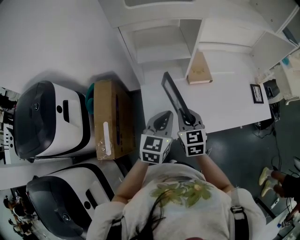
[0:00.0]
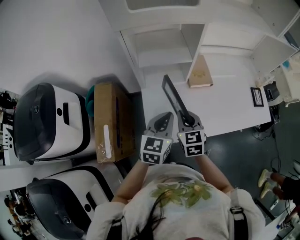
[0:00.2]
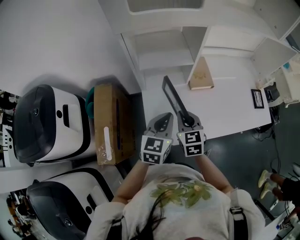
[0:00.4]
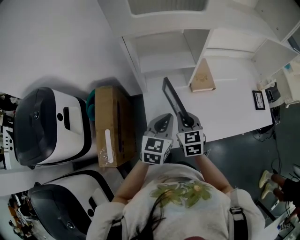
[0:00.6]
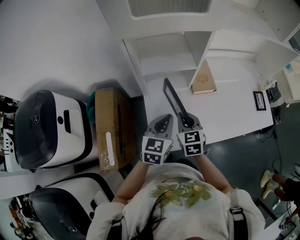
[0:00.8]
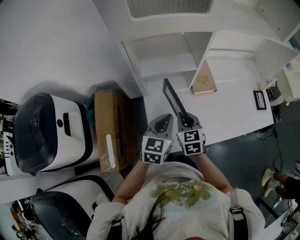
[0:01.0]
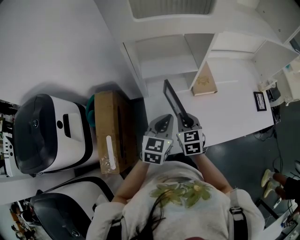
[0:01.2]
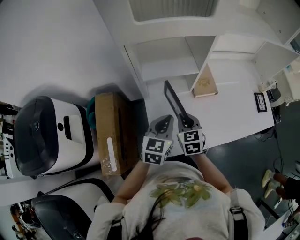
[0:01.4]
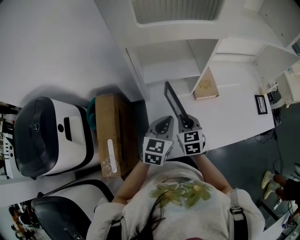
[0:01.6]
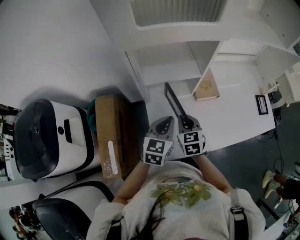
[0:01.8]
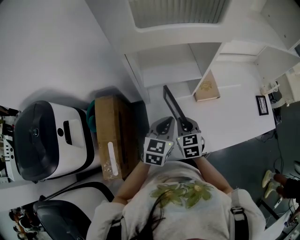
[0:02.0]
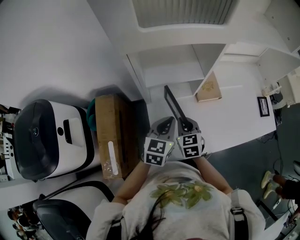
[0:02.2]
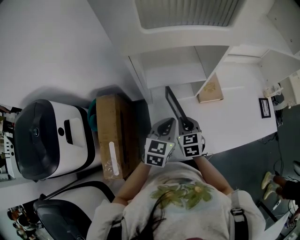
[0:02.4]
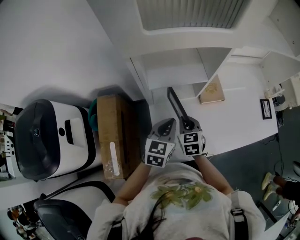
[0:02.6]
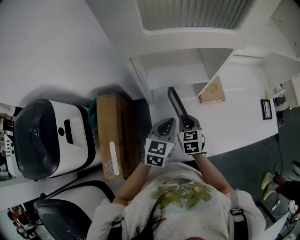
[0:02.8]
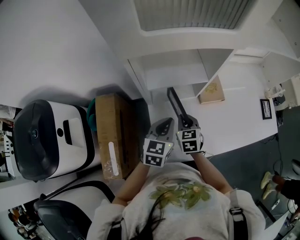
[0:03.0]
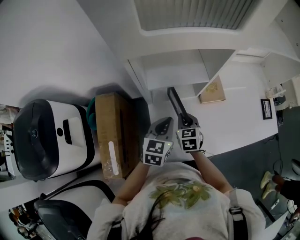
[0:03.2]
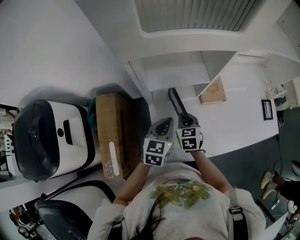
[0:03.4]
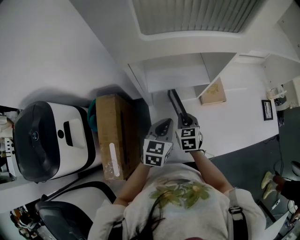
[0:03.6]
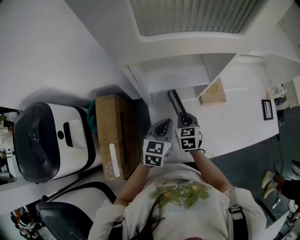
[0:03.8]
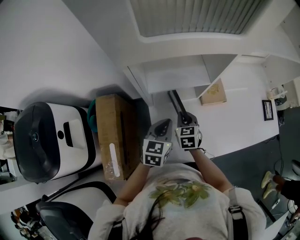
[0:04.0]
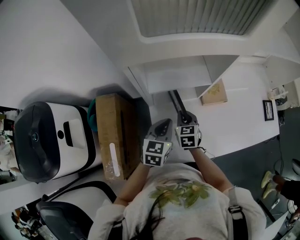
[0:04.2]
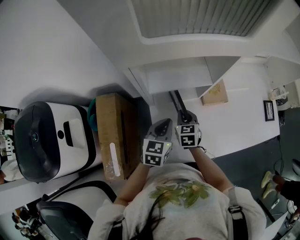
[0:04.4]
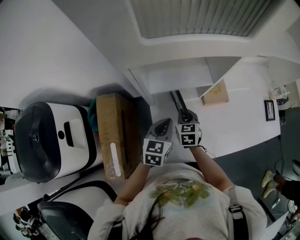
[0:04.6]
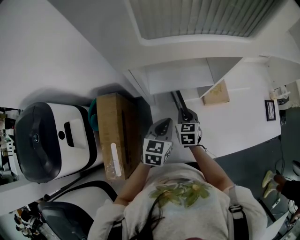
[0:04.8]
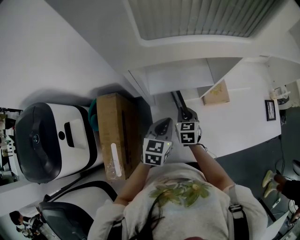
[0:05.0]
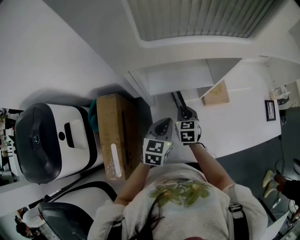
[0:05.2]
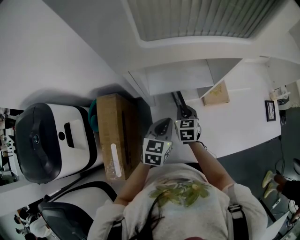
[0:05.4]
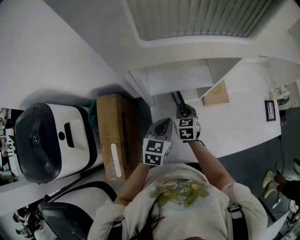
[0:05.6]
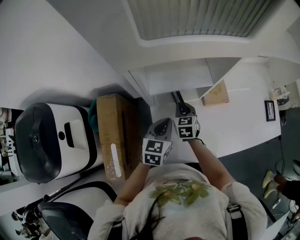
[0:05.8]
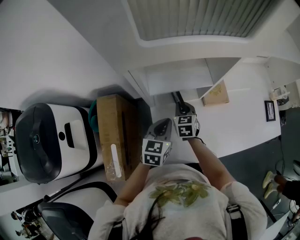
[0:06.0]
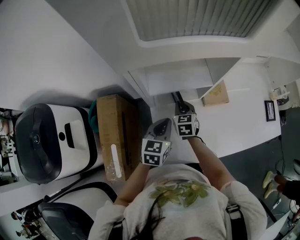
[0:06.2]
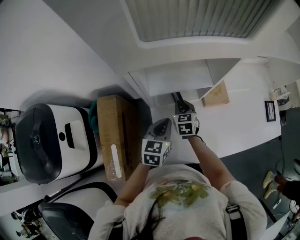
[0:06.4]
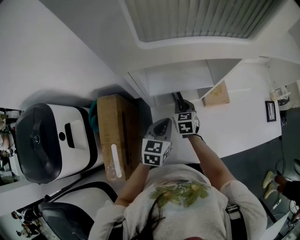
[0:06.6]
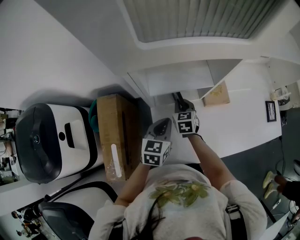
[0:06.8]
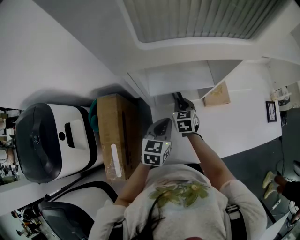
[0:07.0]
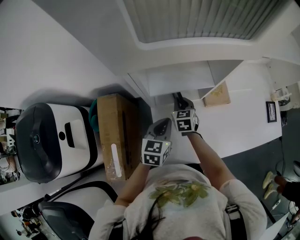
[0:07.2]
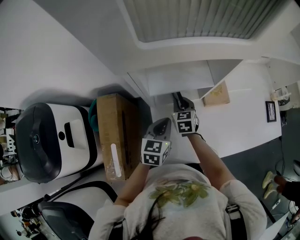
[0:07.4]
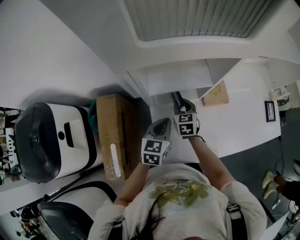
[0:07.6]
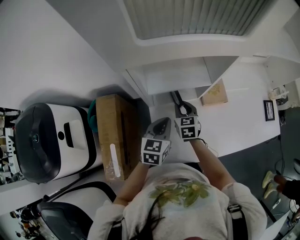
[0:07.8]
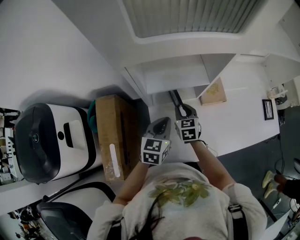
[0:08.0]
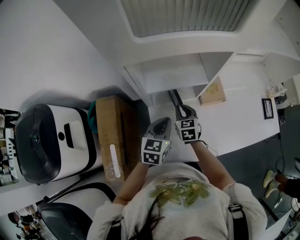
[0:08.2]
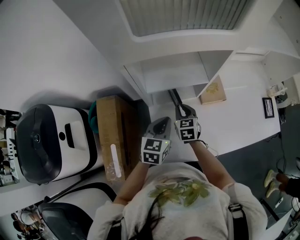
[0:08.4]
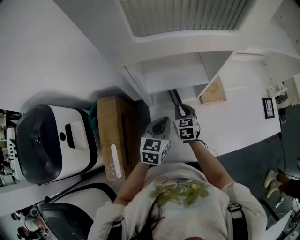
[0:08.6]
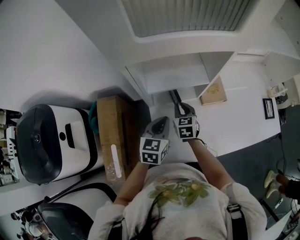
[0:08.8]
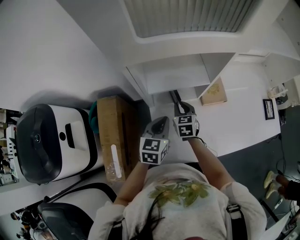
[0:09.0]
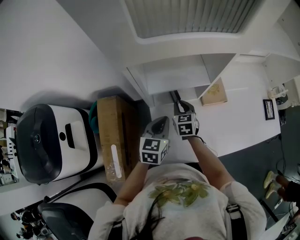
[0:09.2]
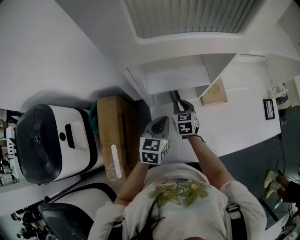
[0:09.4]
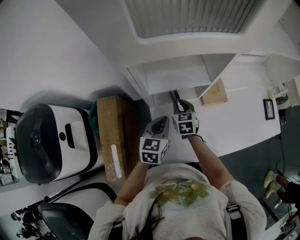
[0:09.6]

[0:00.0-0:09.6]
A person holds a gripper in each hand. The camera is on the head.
0:00.0 to 0:01.6: The left gripper is displaced forward by about 10 cm; the right gripper shifts approximately 10 cm forward and downward.
0:01.6 to 0:03.2: The right gripper heads downward and forward, covering approximately 10 cm. The left gripper shifts by roughly 5 cm.
0:03.2 to 0:04.8: The grippers make only small movements.
0:04.8 to 0:06.4: The grippers make only small movements.
0:06.4 to 0:09.6: The grippers stay close to where they were, moving slightly.

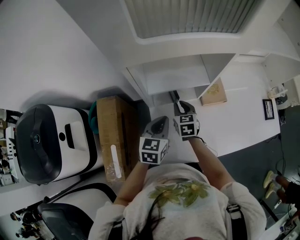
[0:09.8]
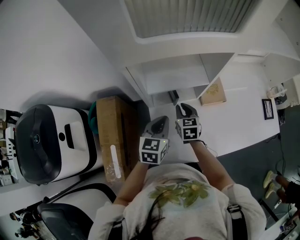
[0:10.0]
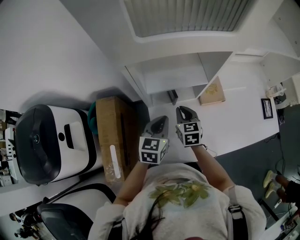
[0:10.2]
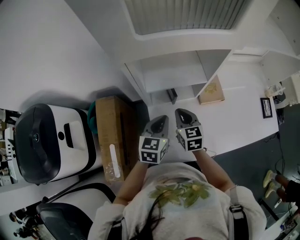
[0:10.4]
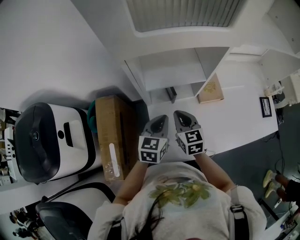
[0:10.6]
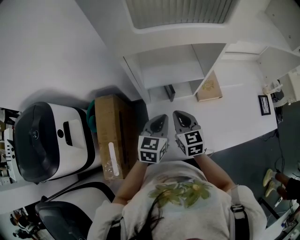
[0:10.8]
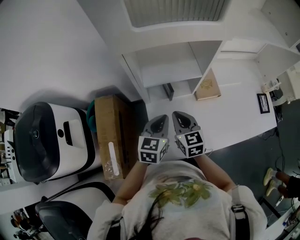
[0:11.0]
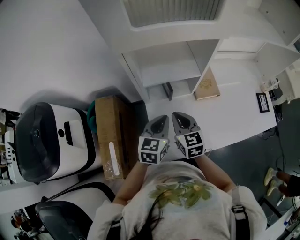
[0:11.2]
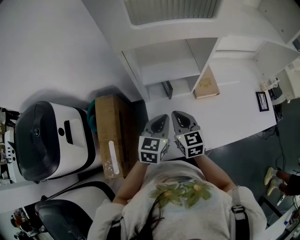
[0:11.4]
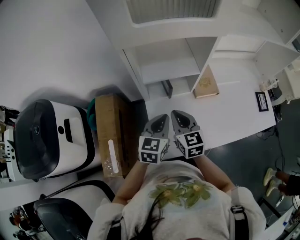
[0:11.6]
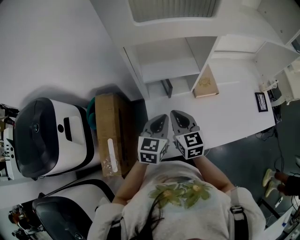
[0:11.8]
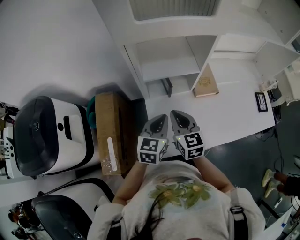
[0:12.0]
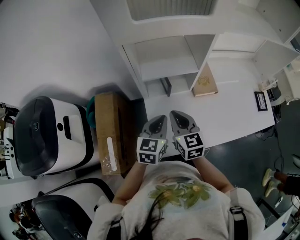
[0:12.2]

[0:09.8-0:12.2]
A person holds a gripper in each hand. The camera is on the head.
0:09.8 to 0:11.0: The right gripper heads upward and backward, covering about 15 cm.
0:11.0 to 0:12.2: The right gripper shifts by some 5 cm.

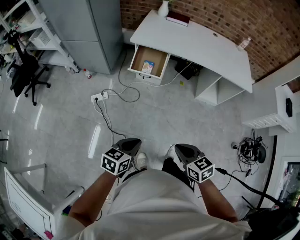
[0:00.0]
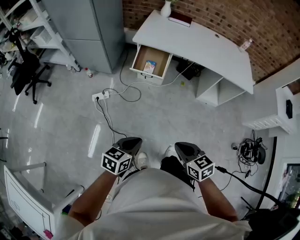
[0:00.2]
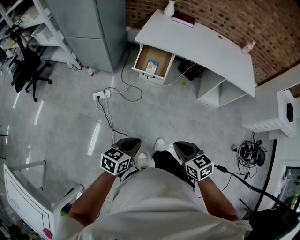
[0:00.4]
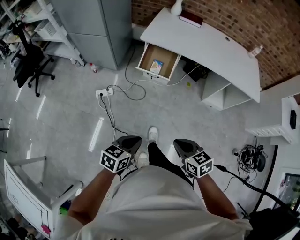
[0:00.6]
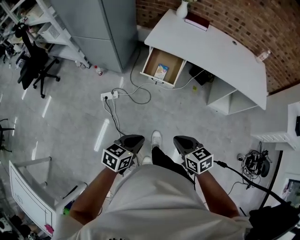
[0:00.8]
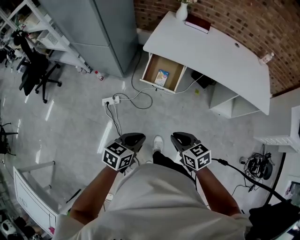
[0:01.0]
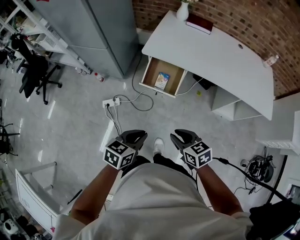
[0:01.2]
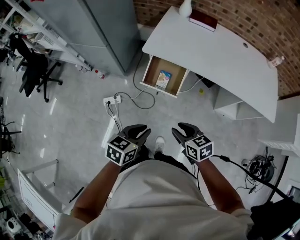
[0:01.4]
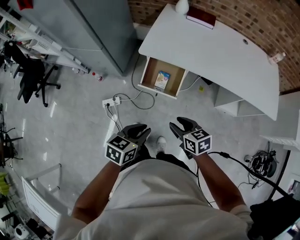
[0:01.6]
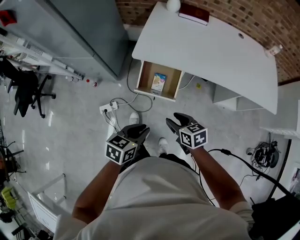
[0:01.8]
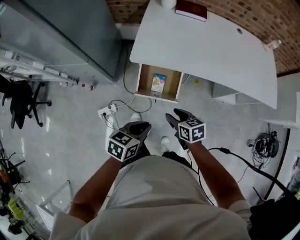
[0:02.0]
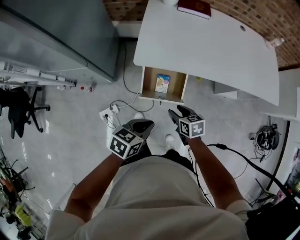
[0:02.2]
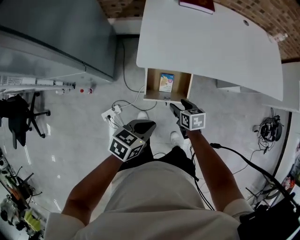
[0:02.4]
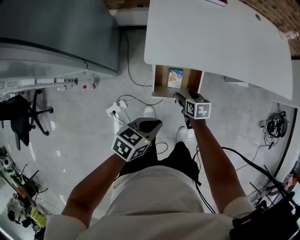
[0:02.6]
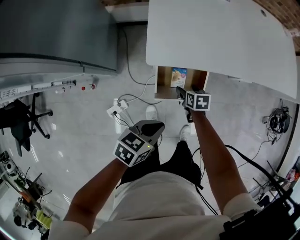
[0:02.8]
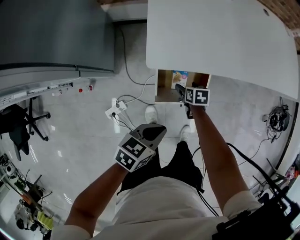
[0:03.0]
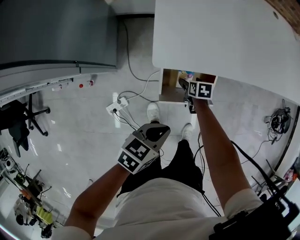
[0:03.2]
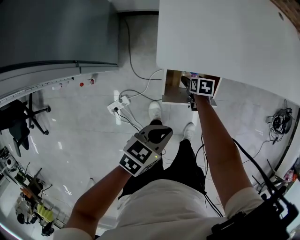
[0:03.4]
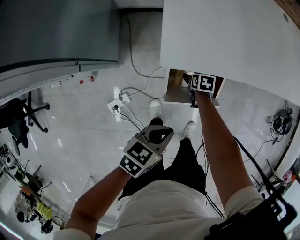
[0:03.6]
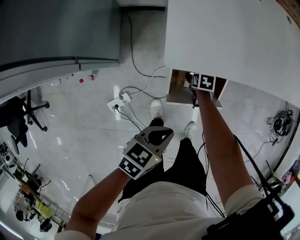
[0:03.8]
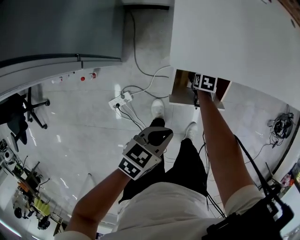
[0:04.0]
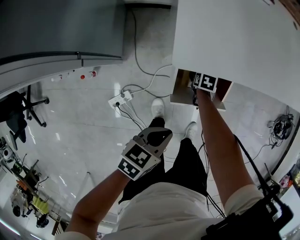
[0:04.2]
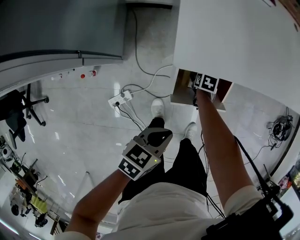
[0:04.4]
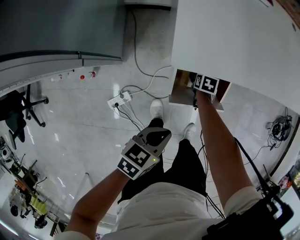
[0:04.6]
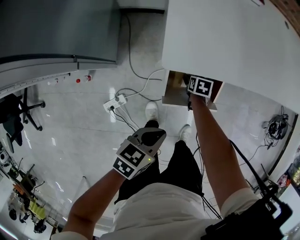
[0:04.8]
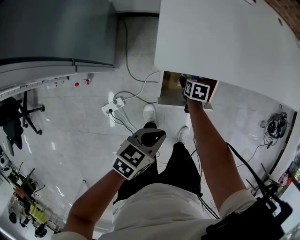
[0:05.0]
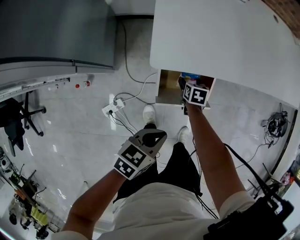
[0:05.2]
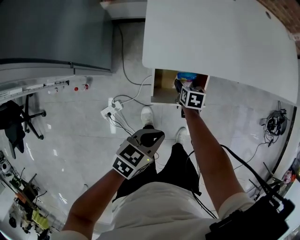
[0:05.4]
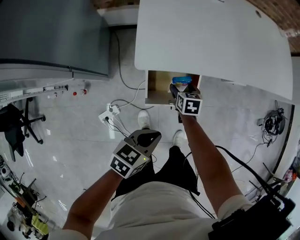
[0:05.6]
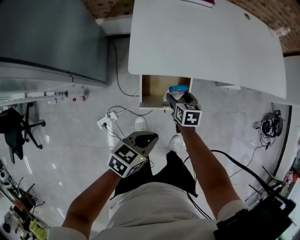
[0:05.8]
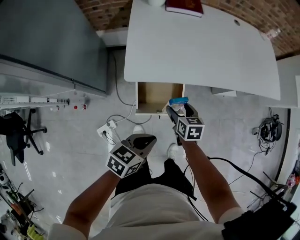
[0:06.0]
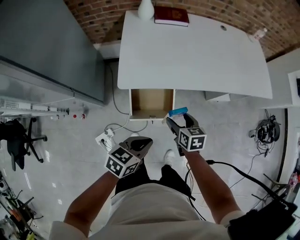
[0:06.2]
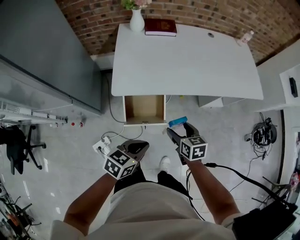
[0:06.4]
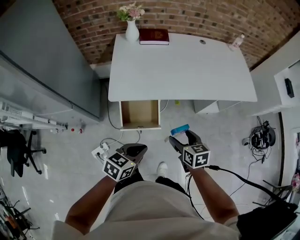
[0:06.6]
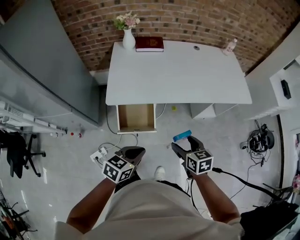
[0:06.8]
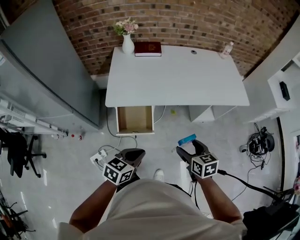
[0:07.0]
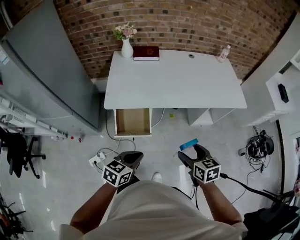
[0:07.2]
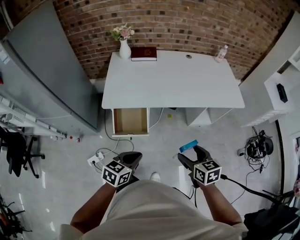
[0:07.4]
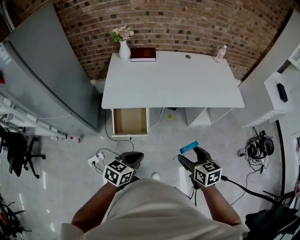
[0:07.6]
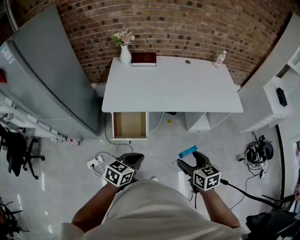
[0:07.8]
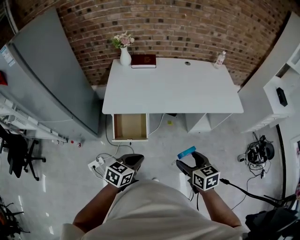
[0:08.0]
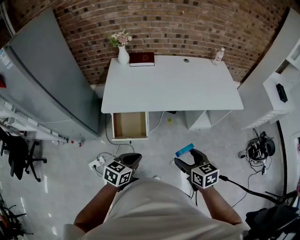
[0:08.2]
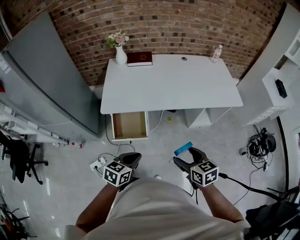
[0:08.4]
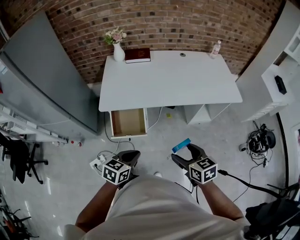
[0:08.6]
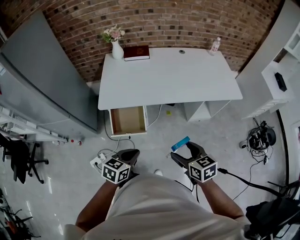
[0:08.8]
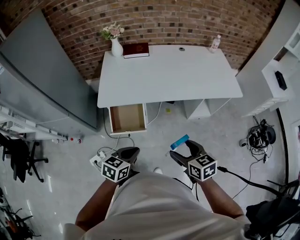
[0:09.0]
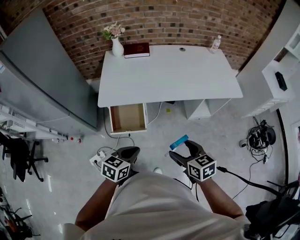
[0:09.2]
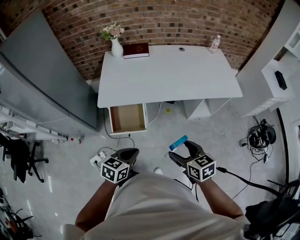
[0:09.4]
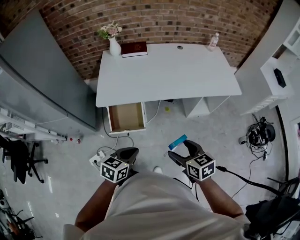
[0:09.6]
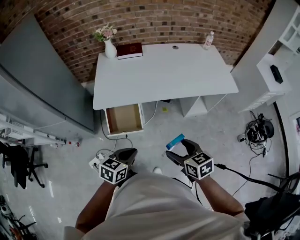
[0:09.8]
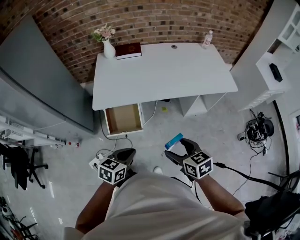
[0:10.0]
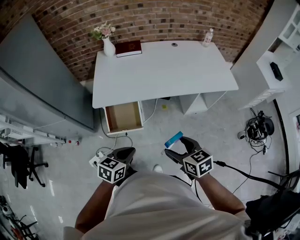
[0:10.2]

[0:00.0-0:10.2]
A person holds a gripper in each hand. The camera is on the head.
0:00.0 to 0:01.4: The two grippers go roughly 35 cm forward.
0:01.4 to 0:03.0: The right gripper shifts by some 50 cm, changes its angle by about 50 degrees, and opens. The left gripper ends up some 40 cm from where it was, and changes its angle by roughly 30 degrees.
0:03.0 to 0:04.4: The right gripper moves downward, about 10 cm; the left gripper goes some 5 cm downward.
0:04.4 to 0:05.8: The left gripper is displaced upward by roughly 10 cm, while the right gripper moves upward, some 25 cm, and swivels approximately 30 degrees.
0:05.8 to 0:07.2: The left gripper travels to the right and upward by approximately 30 cm; the right gripper moves to the right, upward and backward, some 50 cm.
0:07.2 to 0:08.8: The grippers move only a little.
0:08.8 to 0:10.2: The two grippers keep their place.

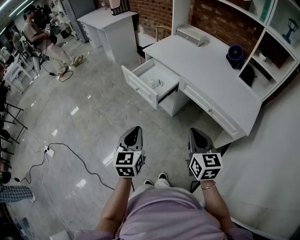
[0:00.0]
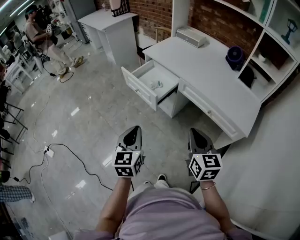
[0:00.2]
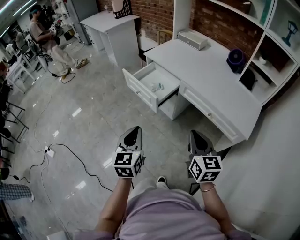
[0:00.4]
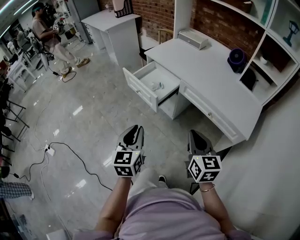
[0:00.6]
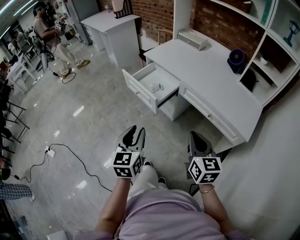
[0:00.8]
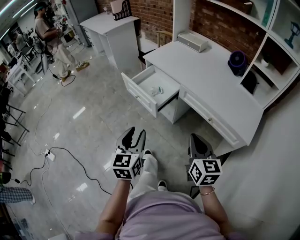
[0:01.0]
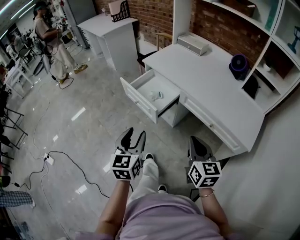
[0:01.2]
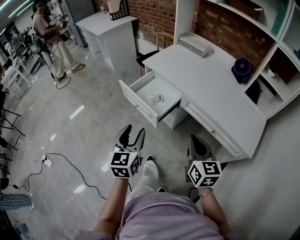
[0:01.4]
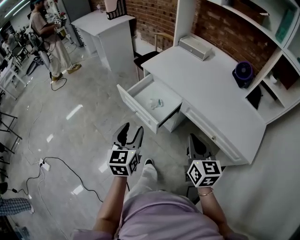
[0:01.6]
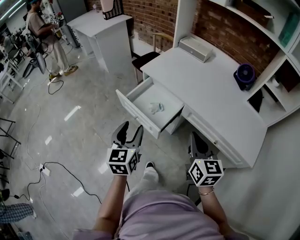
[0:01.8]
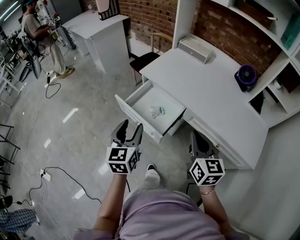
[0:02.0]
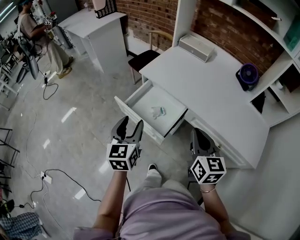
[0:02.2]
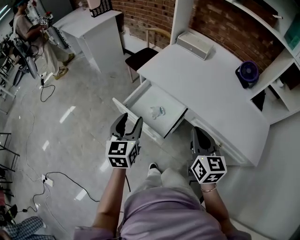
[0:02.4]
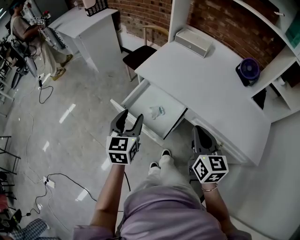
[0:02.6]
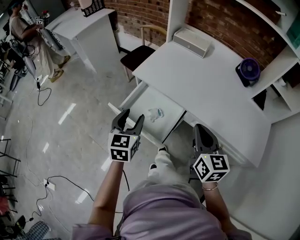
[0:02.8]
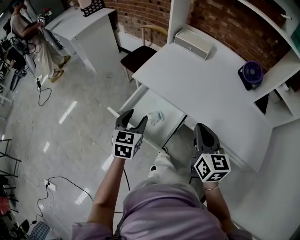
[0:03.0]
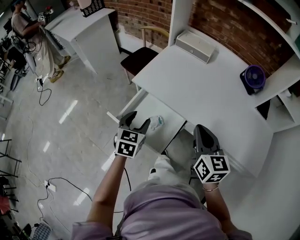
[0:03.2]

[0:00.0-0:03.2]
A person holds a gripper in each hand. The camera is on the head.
0:00.0 to 0:01.6: The two grippers go some 20 cm forward. The left gripper opens its fingers.
0:01.6 to 0:03.2: The two grippers go approximately 25 cm forward. The left gripper rotates about 30 degrees.
